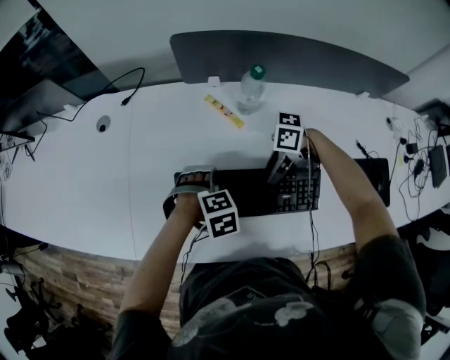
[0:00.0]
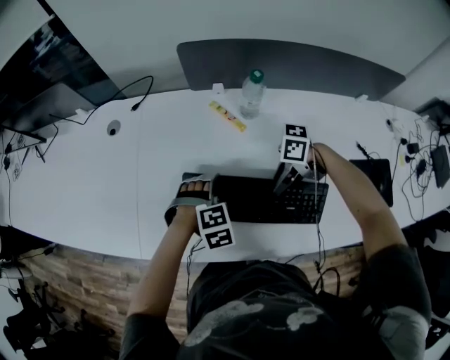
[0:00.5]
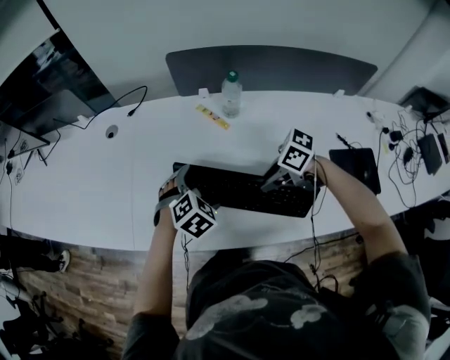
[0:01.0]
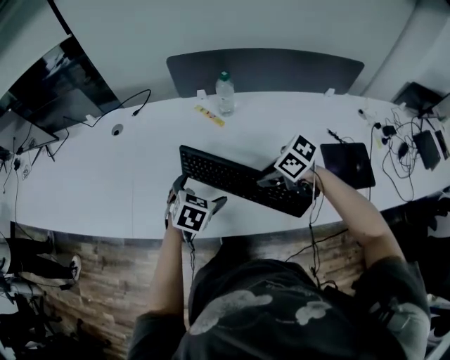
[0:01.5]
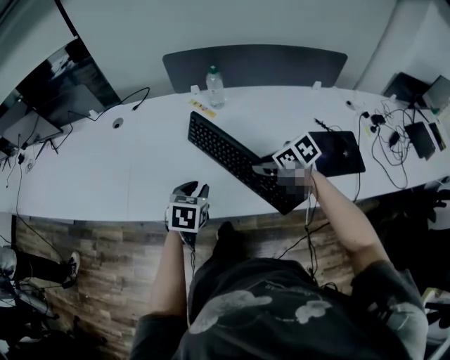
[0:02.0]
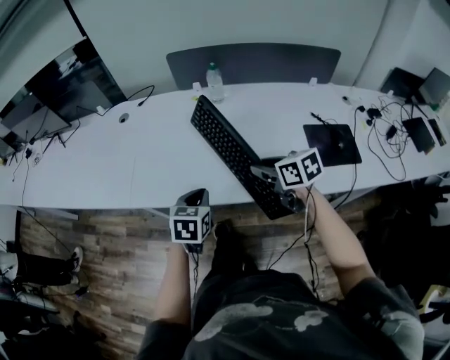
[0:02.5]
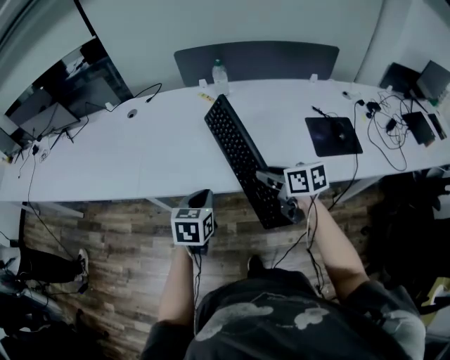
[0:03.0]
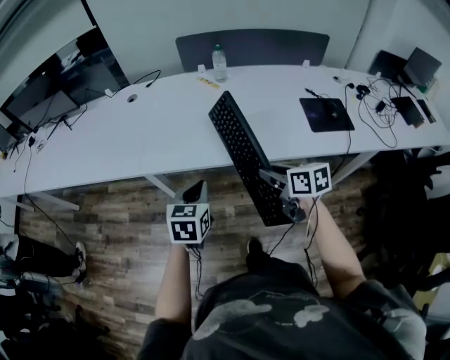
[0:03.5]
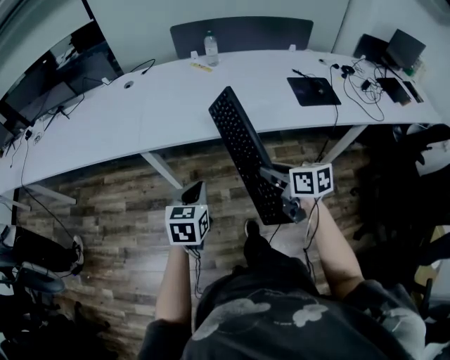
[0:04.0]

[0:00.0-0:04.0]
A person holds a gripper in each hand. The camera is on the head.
0:00.0 to 0:02.0: The left gripper changes place by about 15 cm, twists some 60 degrees counterclockwise, seen from behind, and closes up. The right gripper moves some 20 cm, swivels approximately 60 degrees, and closes.
0:02.0 to 0:04.0: The right gripper is displaced backward by some 35 cm, and changes its angle by roughly 30 degrees, while the left gripper travels backward and to the left by roughly 35 cm.

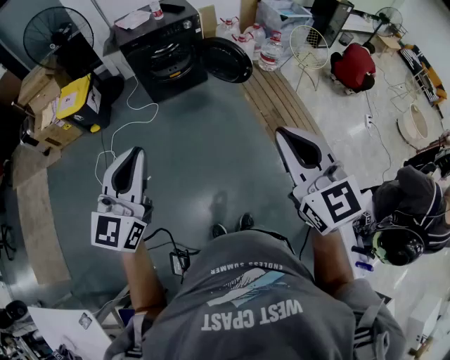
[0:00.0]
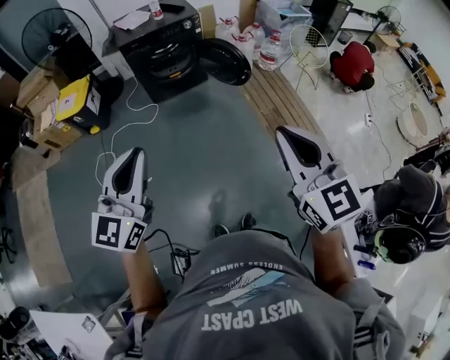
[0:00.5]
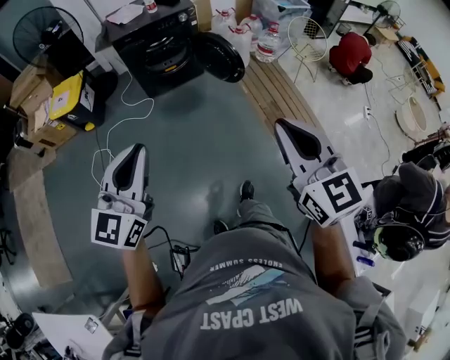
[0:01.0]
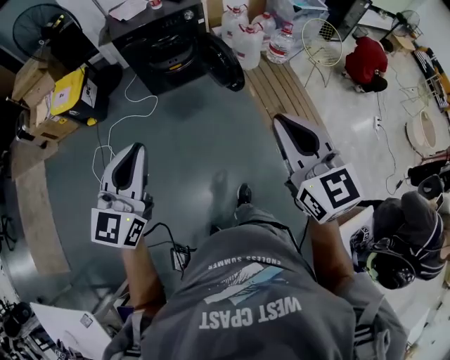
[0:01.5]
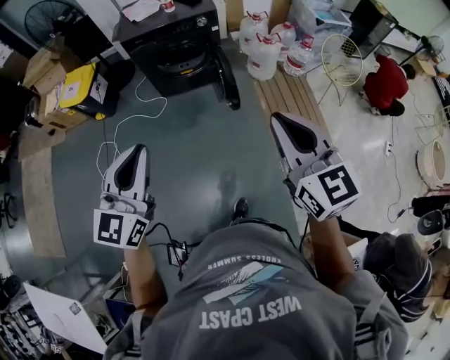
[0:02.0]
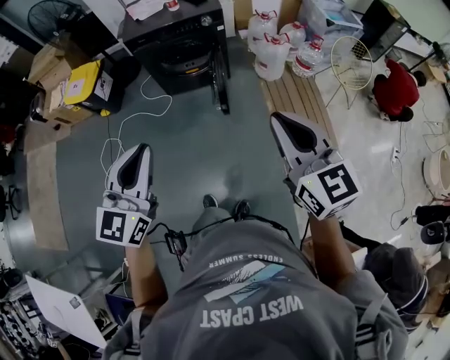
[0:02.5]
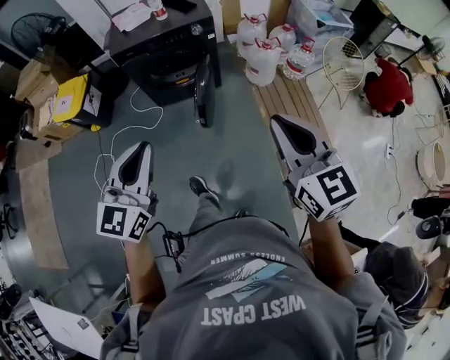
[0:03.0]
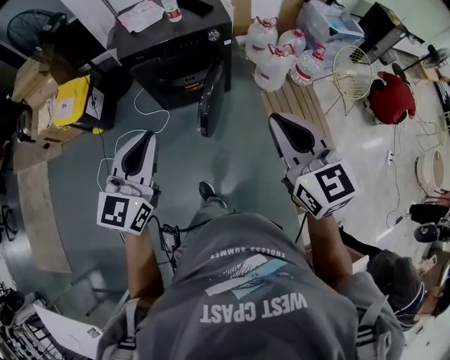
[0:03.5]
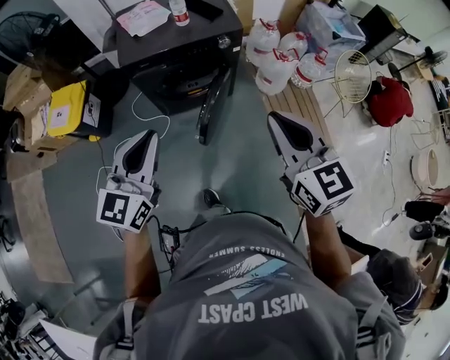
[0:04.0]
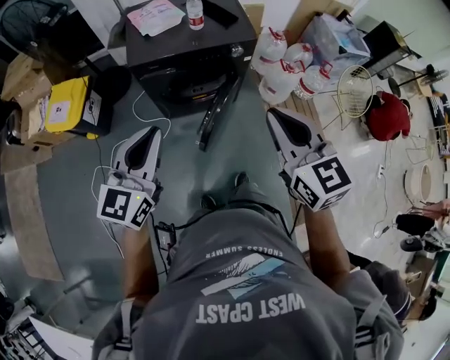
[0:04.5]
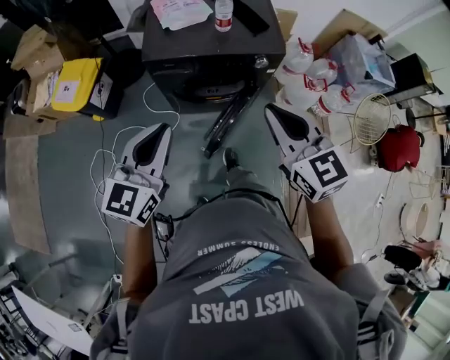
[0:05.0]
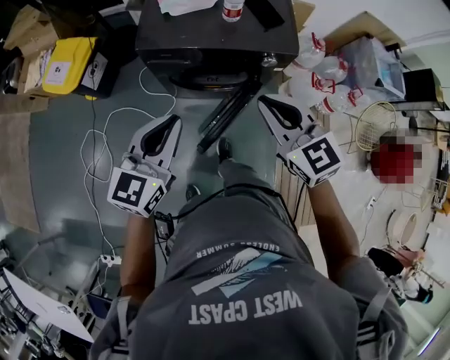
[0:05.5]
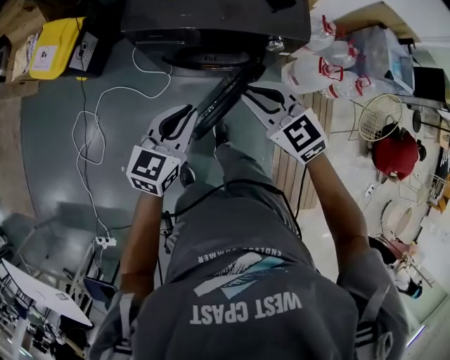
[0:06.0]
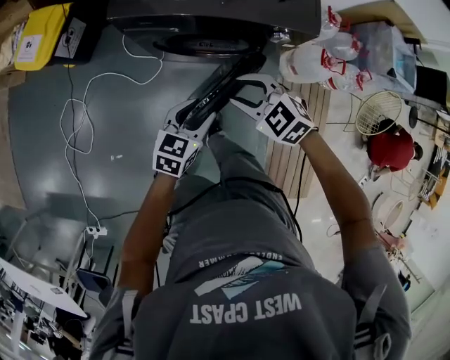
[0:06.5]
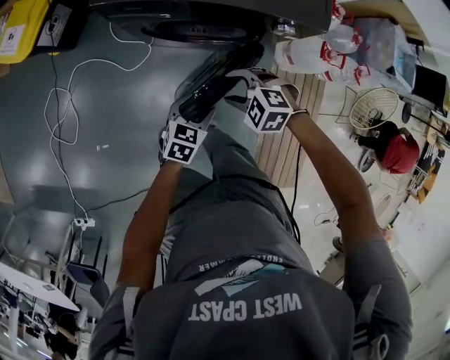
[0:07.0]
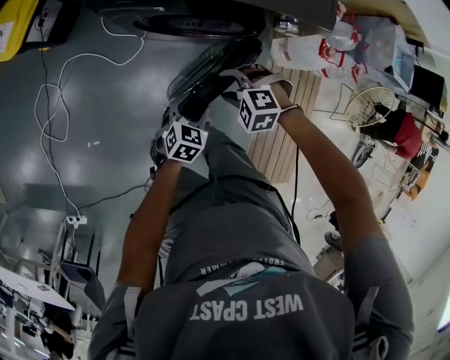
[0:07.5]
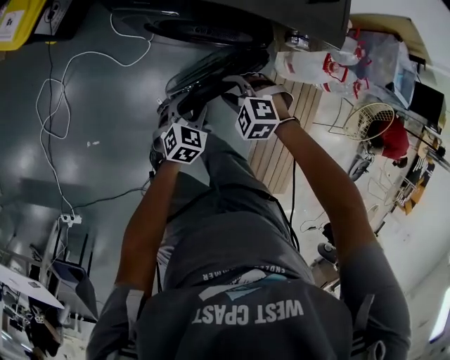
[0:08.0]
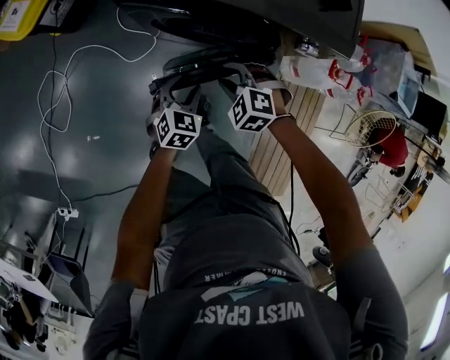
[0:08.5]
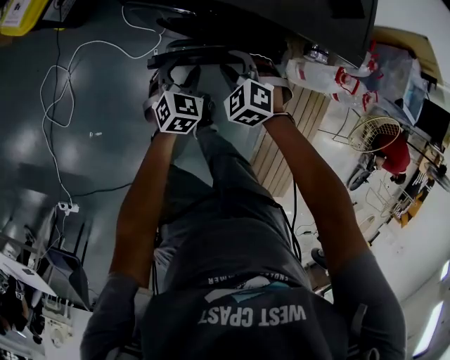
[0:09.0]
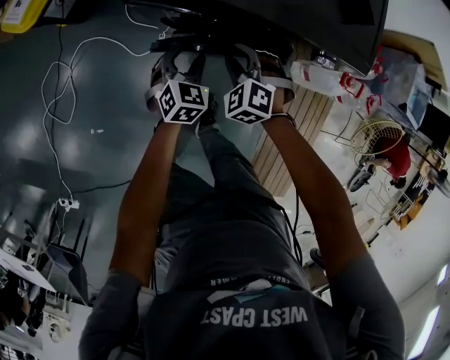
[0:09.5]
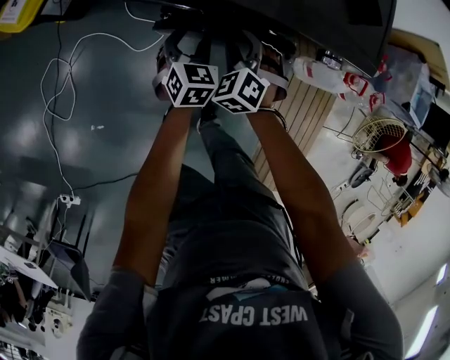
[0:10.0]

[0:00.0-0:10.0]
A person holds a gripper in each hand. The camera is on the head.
0:00.0 to 0:02.0: The grippers both shift forward by approximately 25 cm.
0:02.0 to 0:04.0: The left gripper travels forward by roughly 35 cm. The right gripper moves forward and to the left, approximately 35 cm.
0:04.0 to 0:06.0: The left gripper goes some 30 cm downward and forward, and rotates some 20 degrees. Meanwhile the right gripper goes some 35 cm forward and downward, and turns by roughly 50 degrees.
0:06.0 to 0:08.0: The grippers both shift downward by roughly 30 cm. The right gripper tips its fingers downward by approximately 30 degrees, and opens, while the left gripper changes its angle by approximately 30 degrees, and opens.
0:08.0 to 0:10.0: The grippers both shift forward by roughly 20 cm. The right gripper changes its angle by approximately 40 degrees, while the left gripper turns by about 20 degrees.

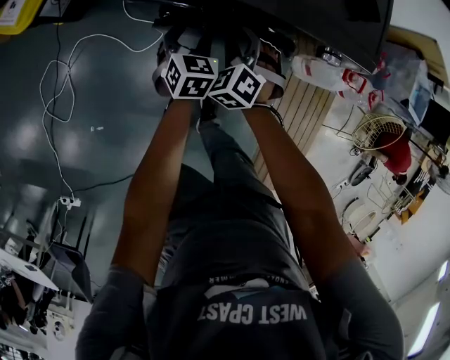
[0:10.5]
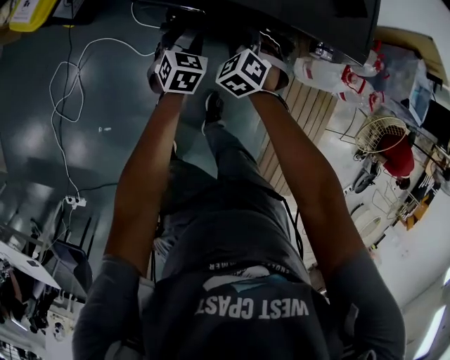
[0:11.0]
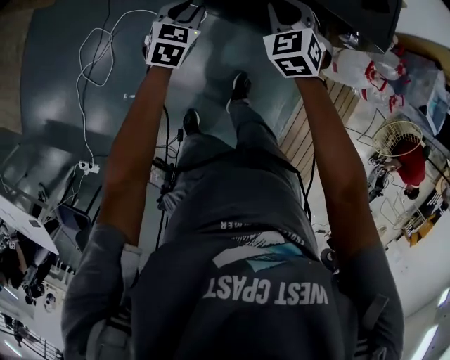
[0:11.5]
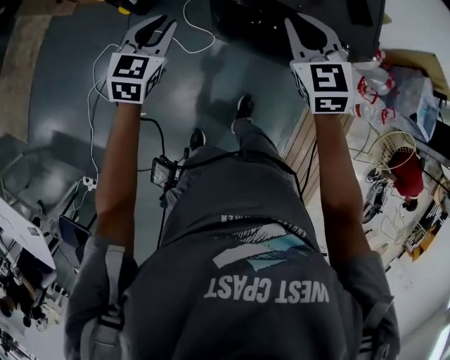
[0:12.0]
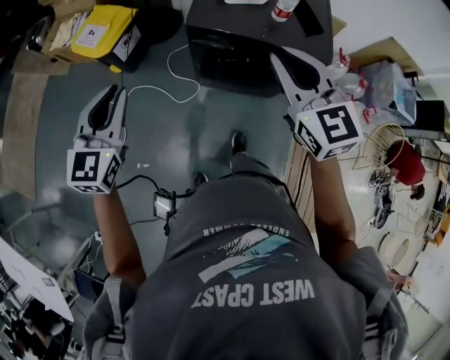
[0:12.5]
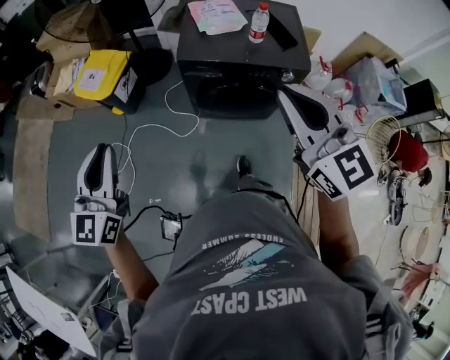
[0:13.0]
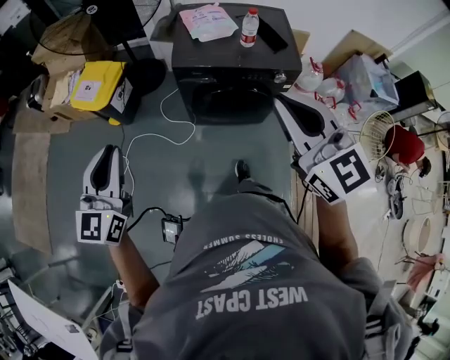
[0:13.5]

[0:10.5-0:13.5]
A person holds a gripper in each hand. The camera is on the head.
0:10.5 to 0:12.0: The right gripper travels upward by approximately 35 cm, rotates about 40 degrees, and closes. The left gripper travels upward and to the left by roughly 35 cm, and closes up.
0:12.0 to 0:13.5: The two grippers go some 25 cm upward and backward. The right gripper rotates some 20 degrees. Meanwhile the left gripper turns by roughly 30 degrees.

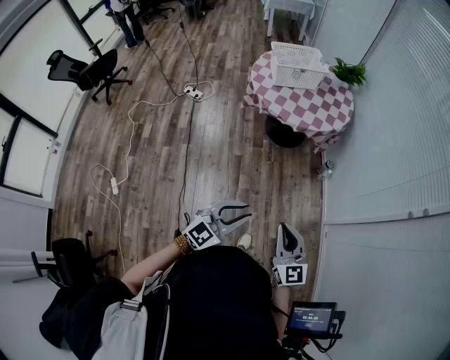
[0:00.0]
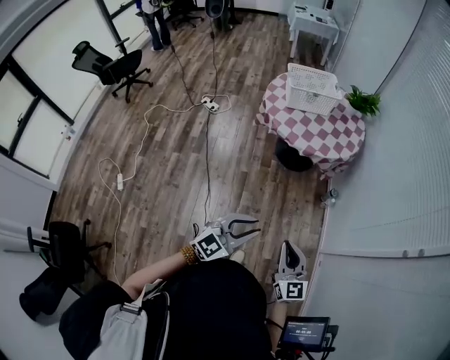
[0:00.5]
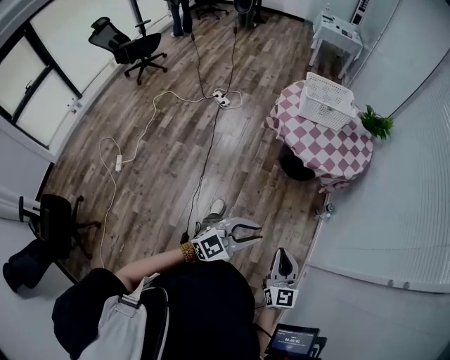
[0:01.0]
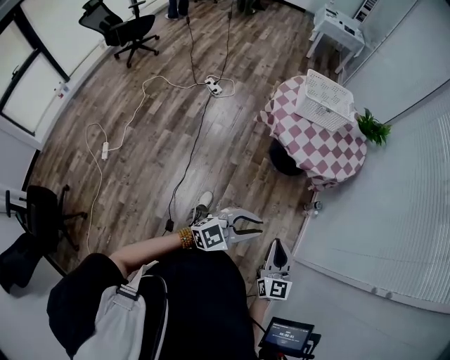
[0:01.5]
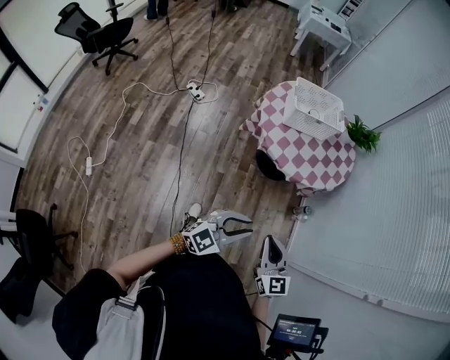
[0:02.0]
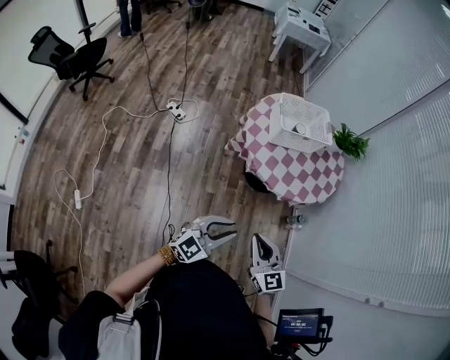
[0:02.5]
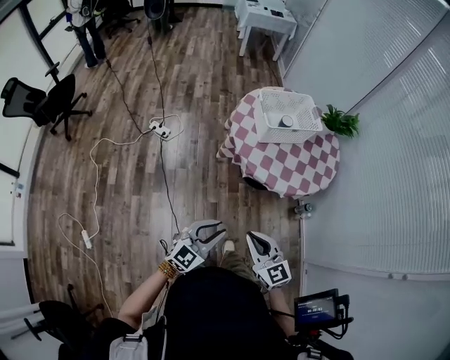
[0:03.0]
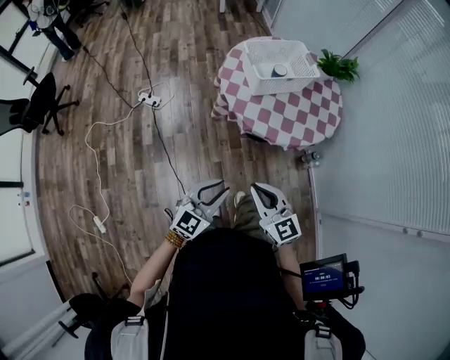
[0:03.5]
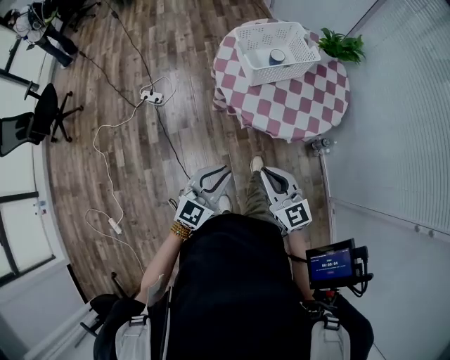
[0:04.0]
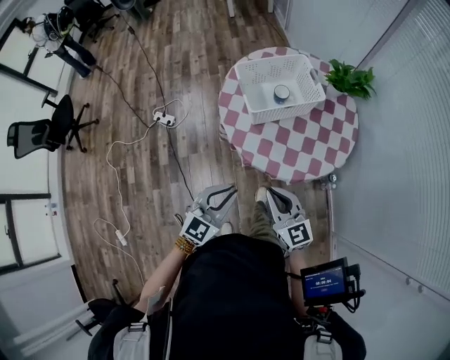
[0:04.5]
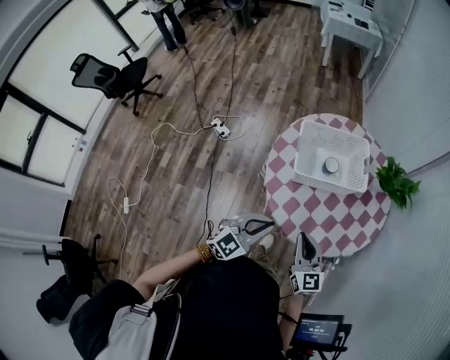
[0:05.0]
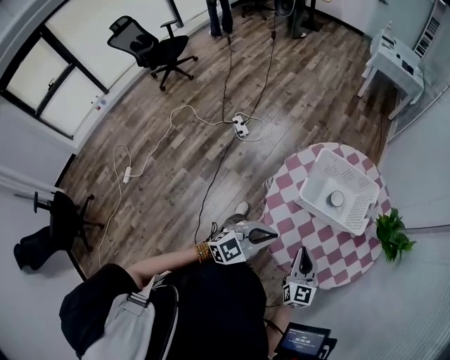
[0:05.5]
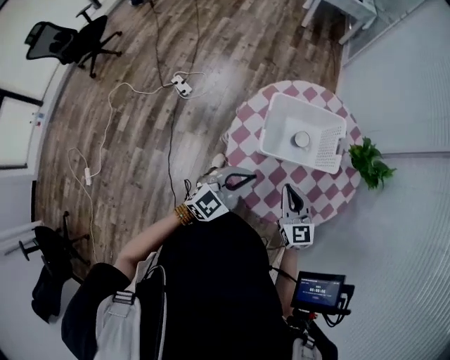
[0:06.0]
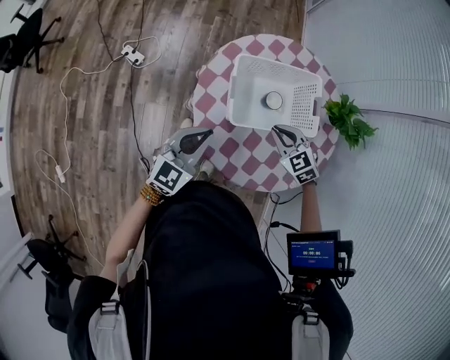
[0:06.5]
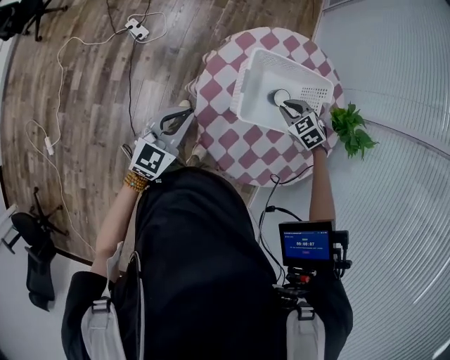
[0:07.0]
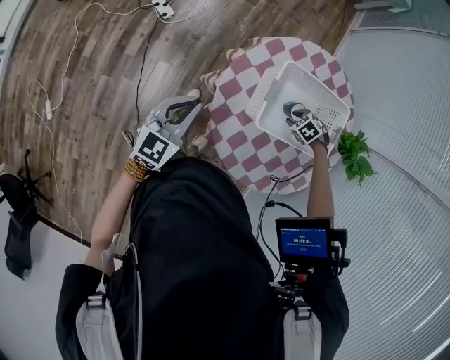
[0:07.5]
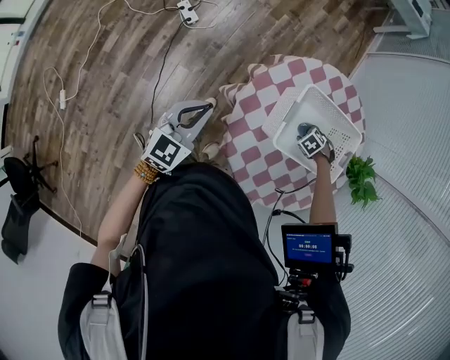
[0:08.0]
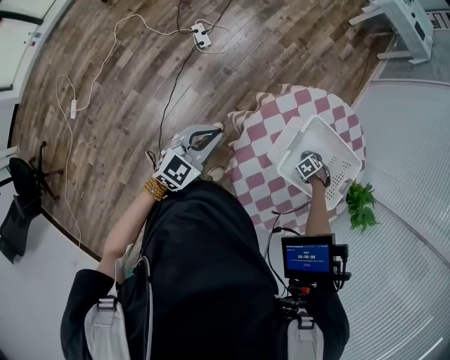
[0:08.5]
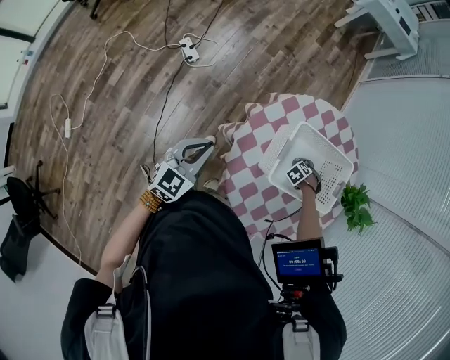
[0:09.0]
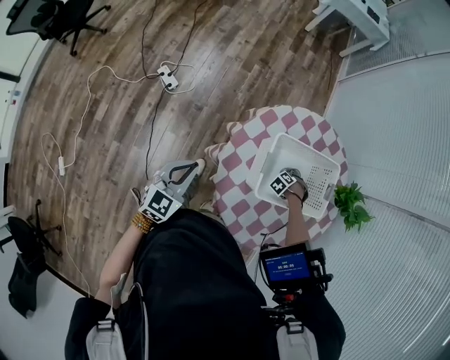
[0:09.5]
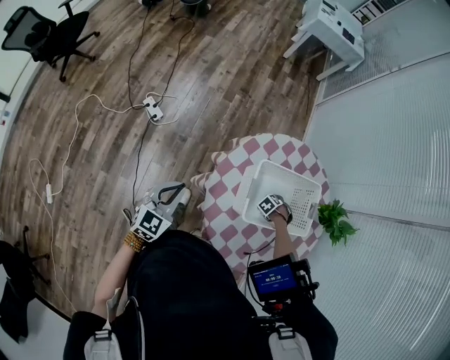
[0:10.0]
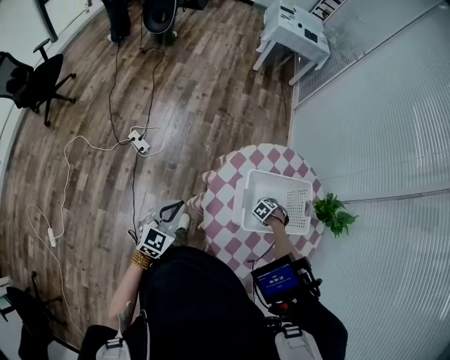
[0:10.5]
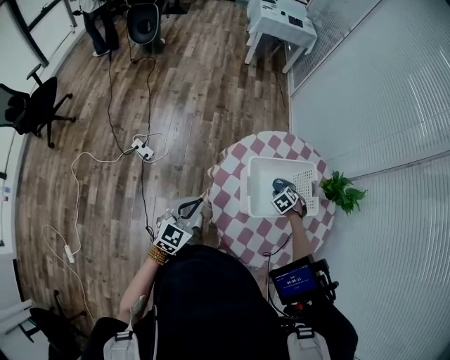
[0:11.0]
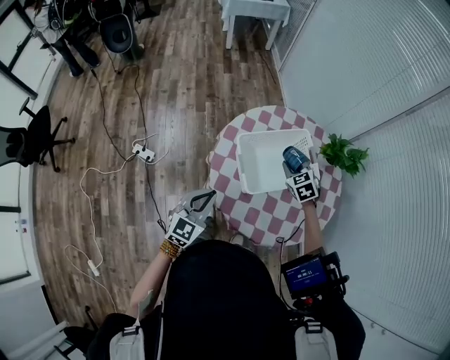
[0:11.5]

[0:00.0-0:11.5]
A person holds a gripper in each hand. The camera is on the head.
0:00.0 to 0:02.0: The right gripper shifts roughly 20 cm forward and to the left. The left gripper heads forward, covering some 20 cm.
0:02.0 to 0:04.0: The two grippers go roughly 25 cm forward and to the left.
0:04.0 to 0:06.0: The right gripper moves forward, approximately 35 cm. Meanwhile the left gripper goes approximately 35 cm forward and to the right.
0:06.0 to 0:07.5: The left gripper moves about 20 cm, and changes its angle by approximately 20 degrees; the right gripper shifts some 25 cm downward, tilts its fingers about 70 degrees downward, and opens up.
0:07.5 to 0:09.5: The right gripper moves downward, roughly 5 cm, and changes its angle by some 20 degrees.
0:09.5 to 0:11.5: The right gripper shifts roughly 30 cm upward, and turns by roughly 70 degrees. The left gripper shifts by roughly 10 cm, and turns by about 20 degrees.
